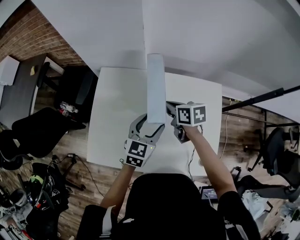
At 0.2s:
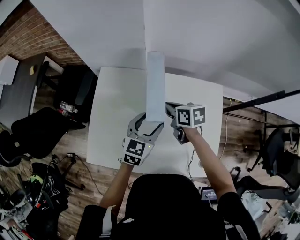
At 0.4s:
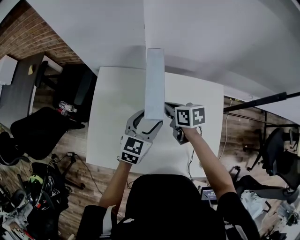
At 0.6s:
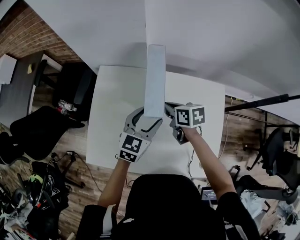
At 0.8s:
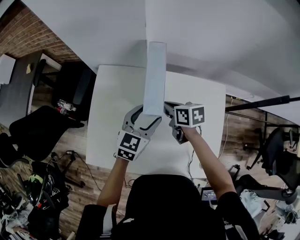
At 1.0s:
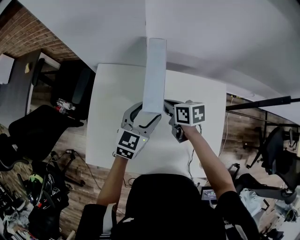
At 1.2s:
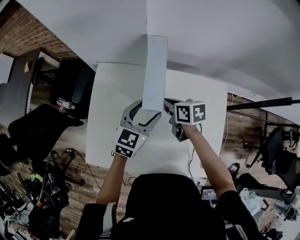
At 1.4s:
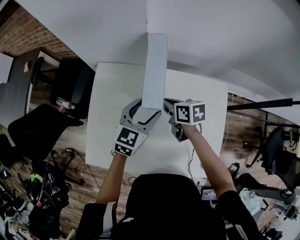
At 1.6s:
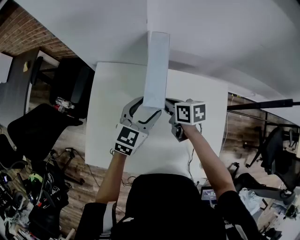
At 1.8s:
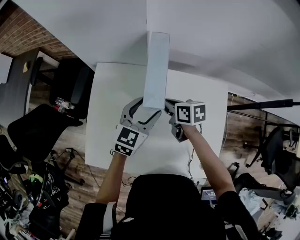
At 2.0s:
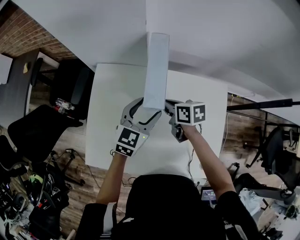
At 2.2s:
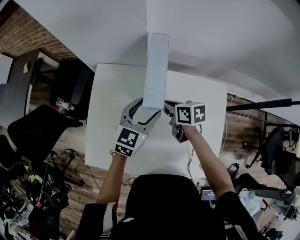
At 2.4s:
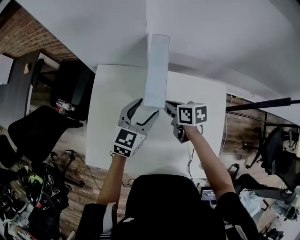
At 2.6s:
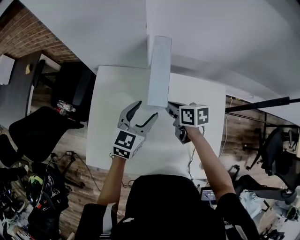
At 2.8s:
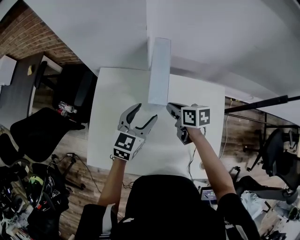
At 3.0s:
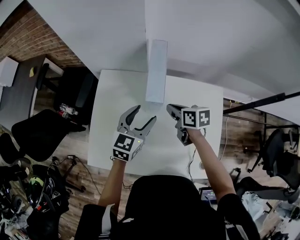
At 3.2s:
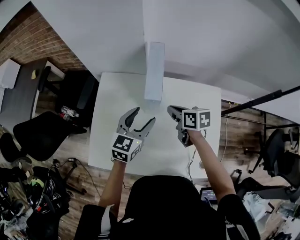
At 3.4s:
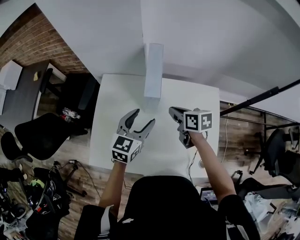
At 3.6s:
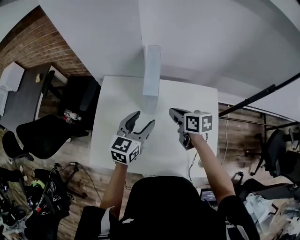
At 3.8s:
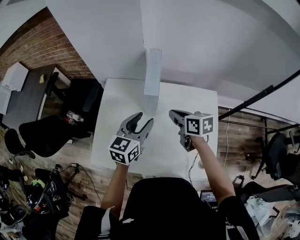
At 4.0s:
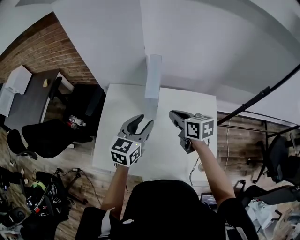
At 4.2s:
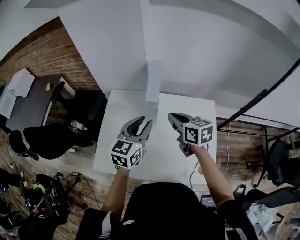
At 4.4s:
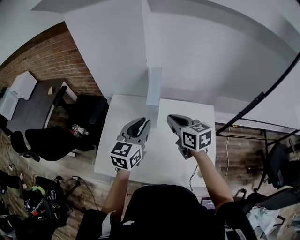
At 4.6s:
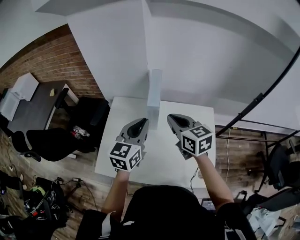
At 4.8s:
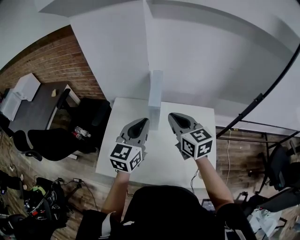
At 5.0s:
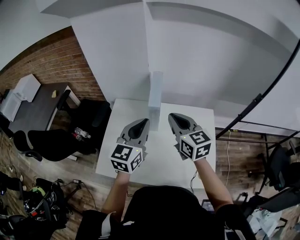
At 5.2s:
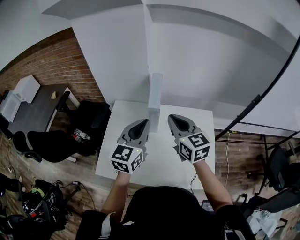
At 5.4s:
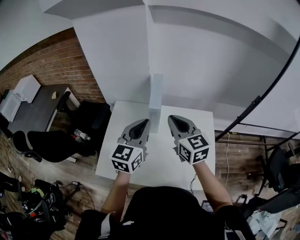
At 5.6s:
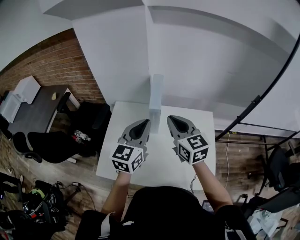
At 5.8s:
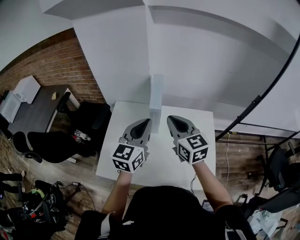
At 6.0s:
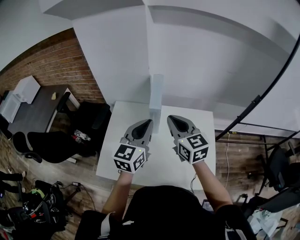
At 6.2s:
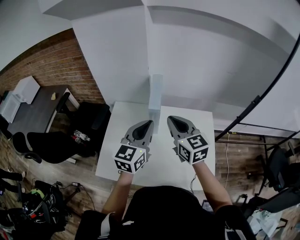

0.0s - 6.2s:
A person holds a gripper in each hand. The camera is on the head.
0.0s - 1.6s: The left gripper moves forward, roughly 10 cm; the right gripper ends up approximately 5 cm from where it was.
1.6s - 3.2s: The right gripper shifts by roughly 5 cm; the left gripper moves about 5 cm.
3.2s - 4.6s: The left gripper shifts approximately 15 cm upward and backward, and closes up. Meanwhile the right gripper goes approximately 20 cm upward, and changes its angle by approximately 40 degrees.
4.6s - 6.2s: The grippers stay close to where they were, moving slightly.

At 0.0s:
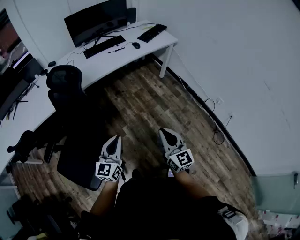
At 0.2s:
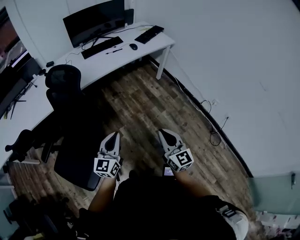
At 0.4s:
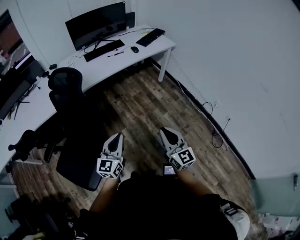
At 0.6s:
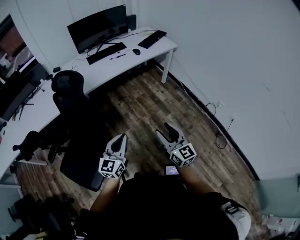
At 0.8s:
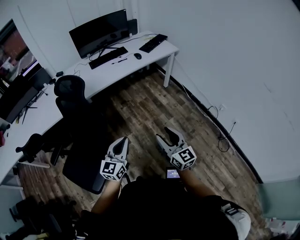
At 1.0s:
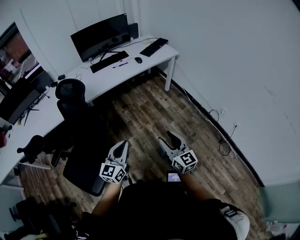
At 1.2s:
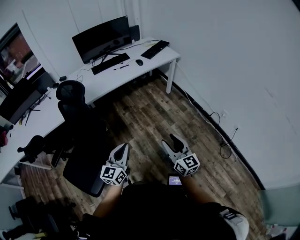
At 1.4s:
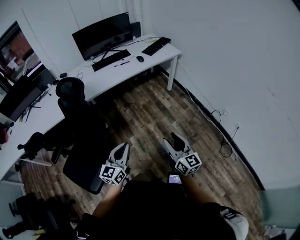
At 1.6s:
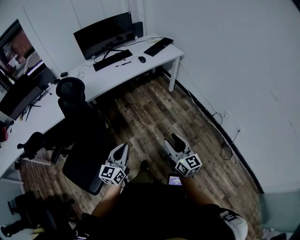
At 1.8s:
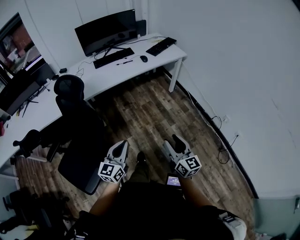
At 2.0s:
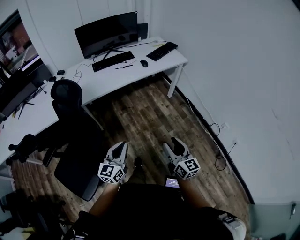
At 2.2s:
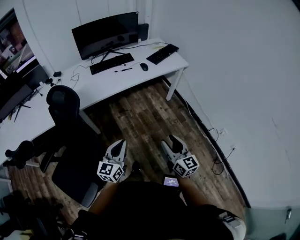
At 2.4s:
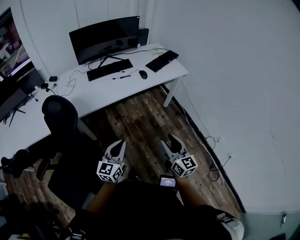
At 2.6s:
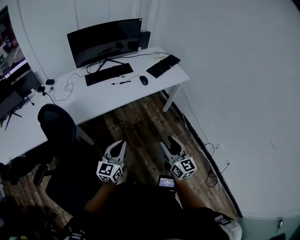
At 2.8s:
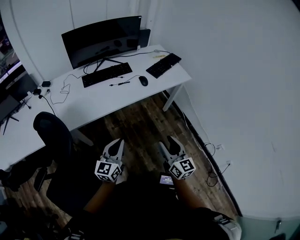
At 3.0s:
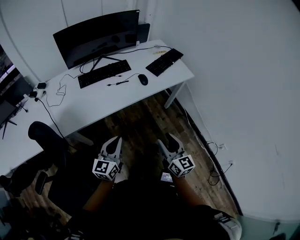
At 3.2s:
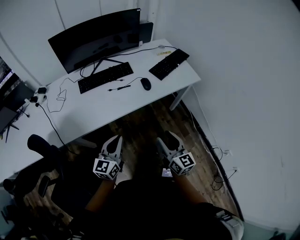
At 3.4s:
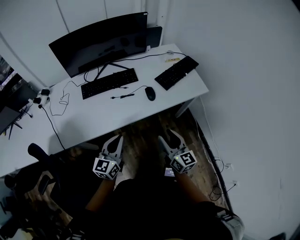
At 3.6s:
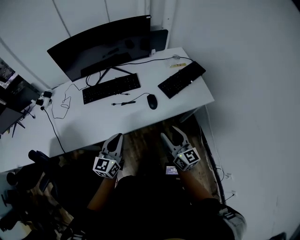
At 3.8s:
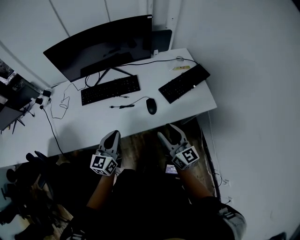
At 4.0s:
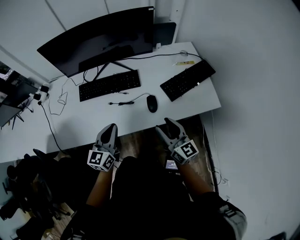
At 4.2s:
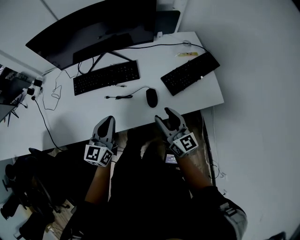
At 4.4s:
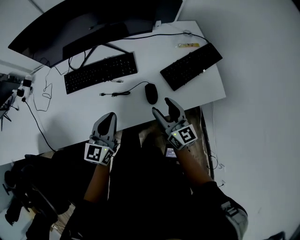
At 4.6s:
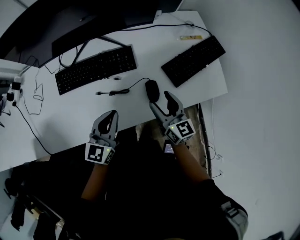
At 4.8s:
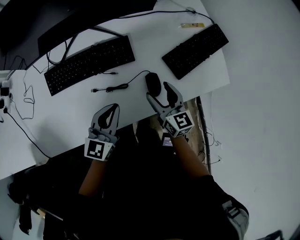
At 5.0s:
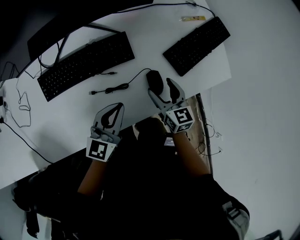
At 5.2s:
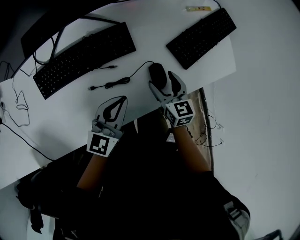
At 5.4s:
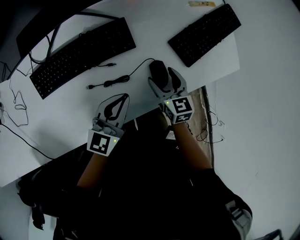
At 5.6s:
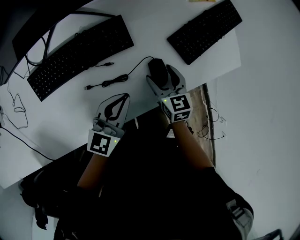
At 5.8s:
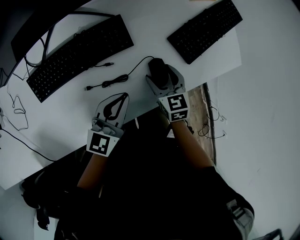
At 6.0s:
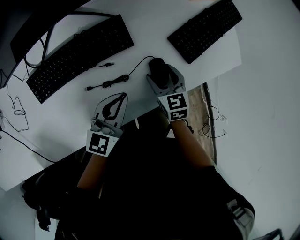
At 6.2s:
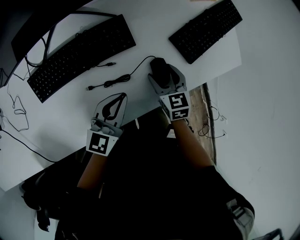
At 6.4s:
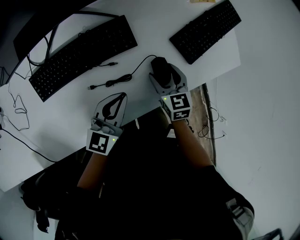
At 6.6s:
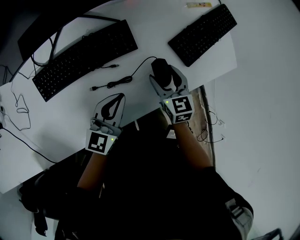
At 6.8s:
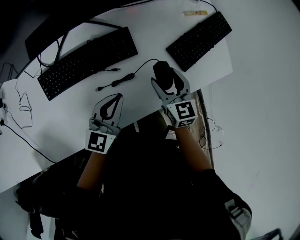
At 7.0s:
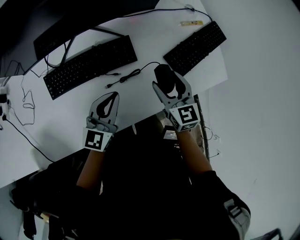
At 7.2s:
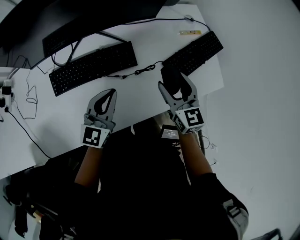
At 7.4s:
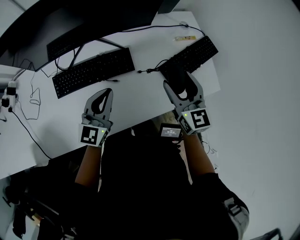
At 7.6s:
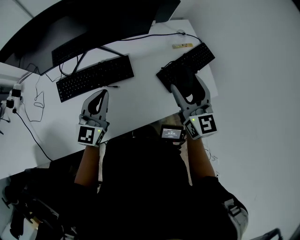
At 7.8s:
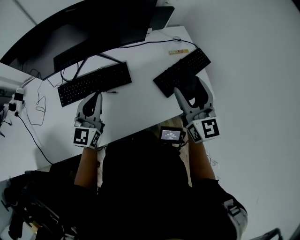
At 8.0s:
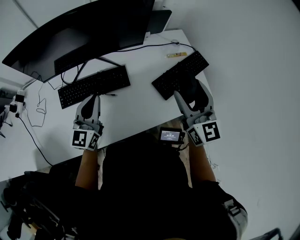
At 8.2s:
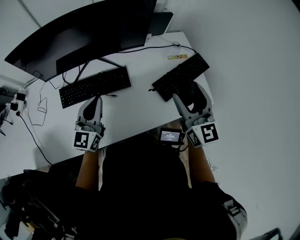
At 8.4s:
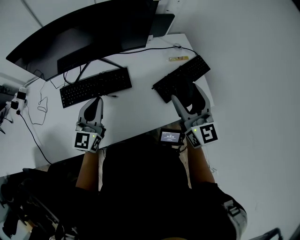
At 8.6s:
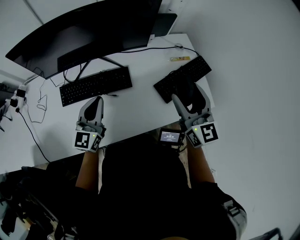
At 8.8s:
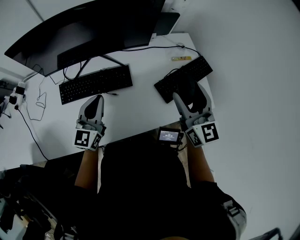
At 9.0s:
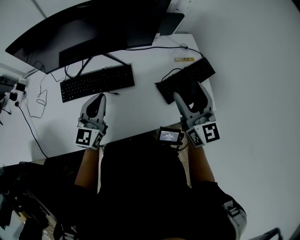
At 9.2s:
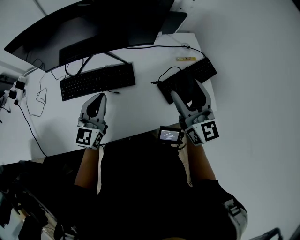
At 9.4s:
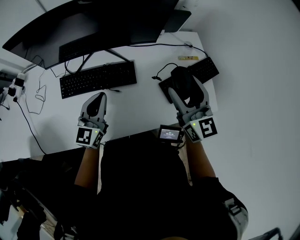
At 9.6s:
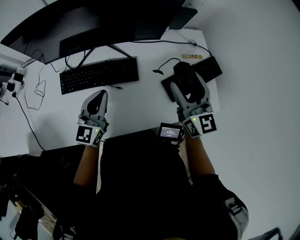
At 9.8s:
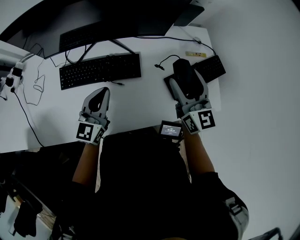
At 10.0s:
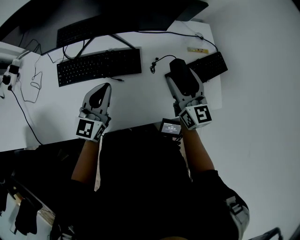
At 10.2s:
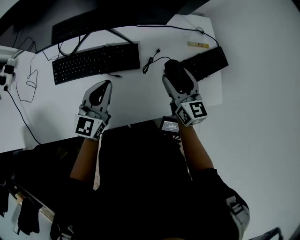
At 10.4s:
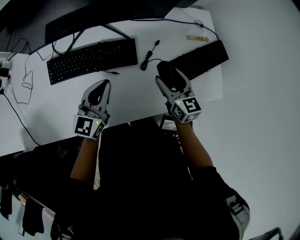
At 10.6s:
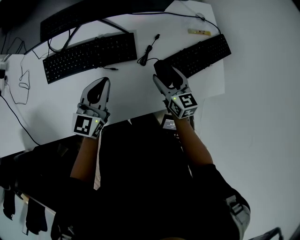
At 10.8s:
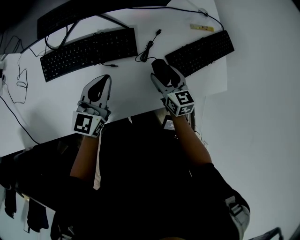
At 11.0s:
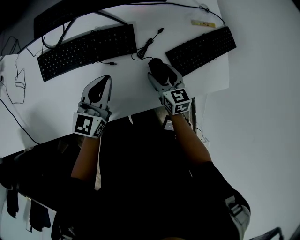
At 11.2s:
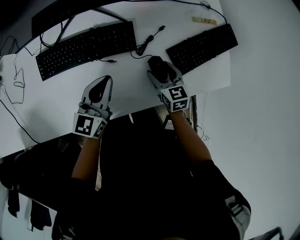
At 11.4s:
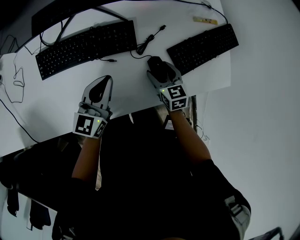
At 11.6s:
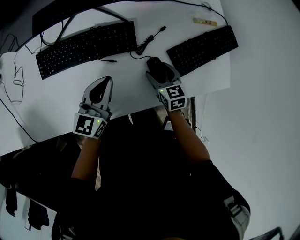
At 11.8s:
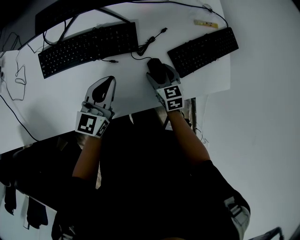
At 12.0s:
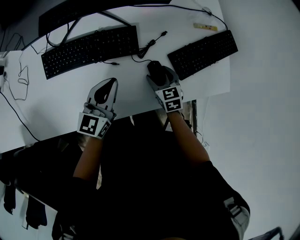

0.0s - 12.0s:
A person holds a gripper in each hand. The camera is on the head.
0.0s - 1.6s: Both grippers travel together to the right, about 10 cm. The right gripper opens.
1.6s - 3.0s: The two grippers travel together, forward, approximately 40 cm.
3.0s - 4.4s: Both grippers travel together forward, roughly 40 cm.
4.4s - 6.0s: The right gripper shifts approximately 20 cm downward, and tips its fingers downward by approximately 40 degrees; the left gripper moves downward and forward, roughly 15 cm, and rotates some 20 degrees.
6.0s - 7.6s: The right gripper heads upward, covering some 30 cm, and tilts its fingers about 40 degrees upward. The left gripper is displaced upward and to the left by approximately 15 cm, and rotates approximately 30 degrees.
7.6s - 9.0s: The grippers stay close to where they were, moving slightly.
9.0s - 10.4s: The left gripper is displaced downward by roughly 10 cm. Meanwhile the right gripper heads downward, covering some 20 cm, and swivels roughly 30 degrees.
10.4s - 12.0s: The left gripper shifts by about 5 cm. Meanwhile the right gripper heads downward, covering some 15 cm, and changes its angle by about 20 degrees.

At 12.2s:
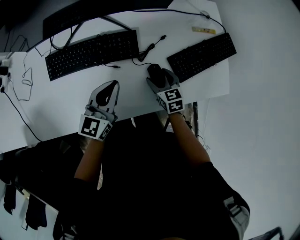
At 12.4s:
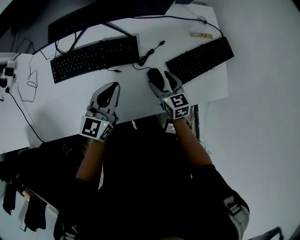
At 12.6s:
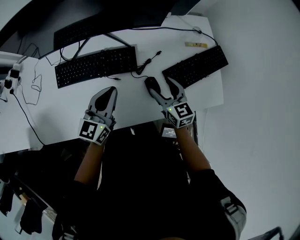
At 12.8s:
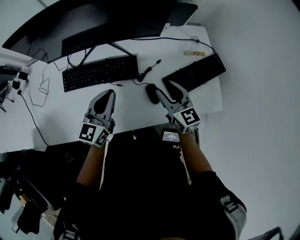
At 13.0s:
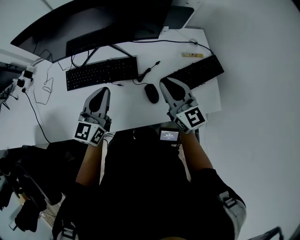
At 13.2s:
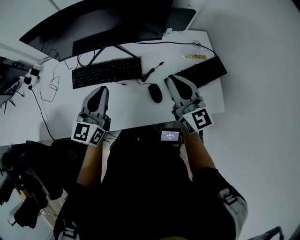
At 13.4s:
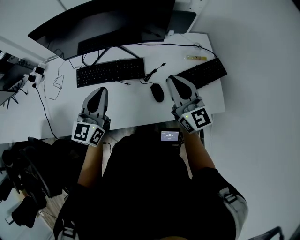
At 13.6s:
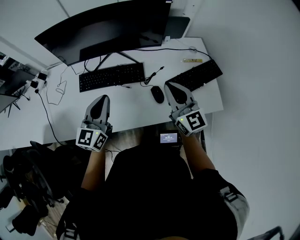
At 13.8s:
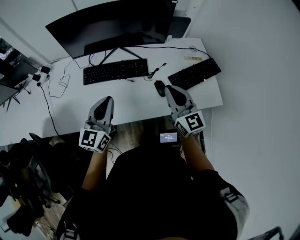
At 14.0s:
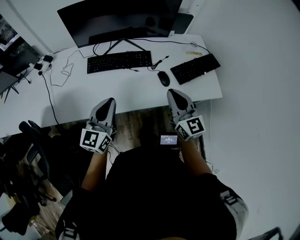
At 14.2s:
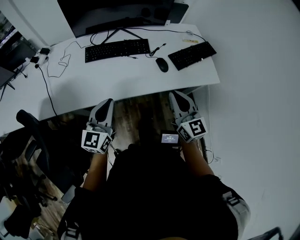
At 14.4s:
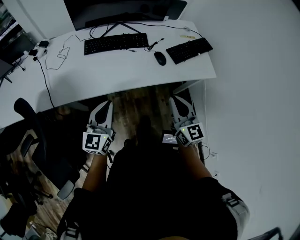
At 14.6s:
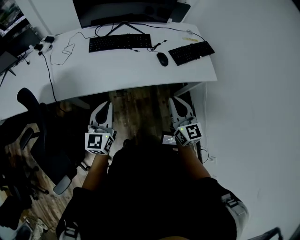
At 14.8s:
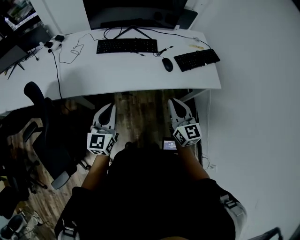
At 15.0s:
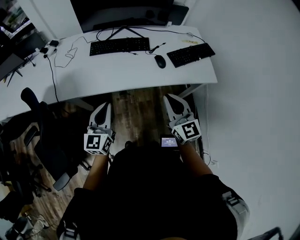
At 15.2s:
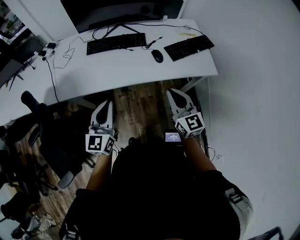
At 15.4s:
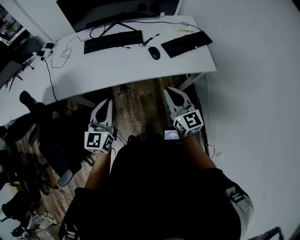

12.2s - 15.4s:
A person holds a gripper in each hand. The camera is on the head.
12.2s - 13.8s: The left gripper moves upward, backward and to the left, some 25 cm. Meanwhile the right gripper travels upward by some 30 cm, tilts its fingers some 40 degrees upward, and closes its fingers.
13.8s - 15.4s: The two grippers go roughly 25 cm backward.

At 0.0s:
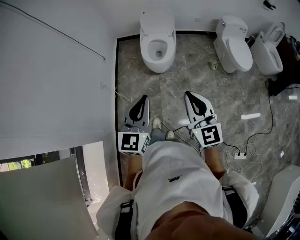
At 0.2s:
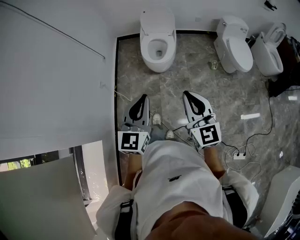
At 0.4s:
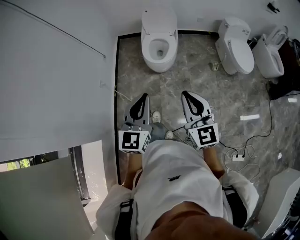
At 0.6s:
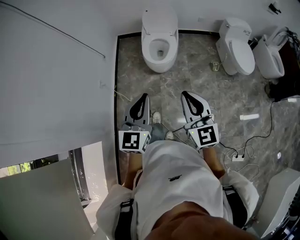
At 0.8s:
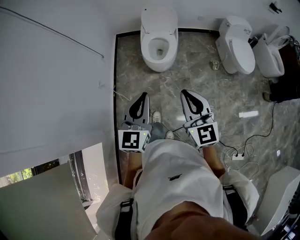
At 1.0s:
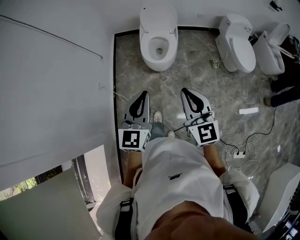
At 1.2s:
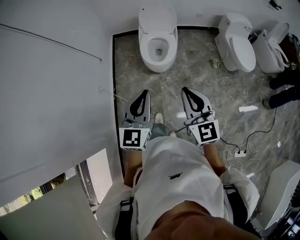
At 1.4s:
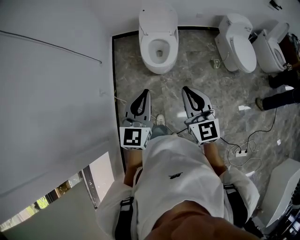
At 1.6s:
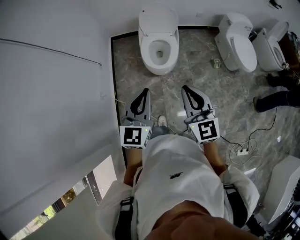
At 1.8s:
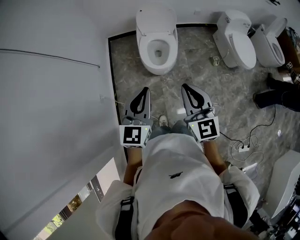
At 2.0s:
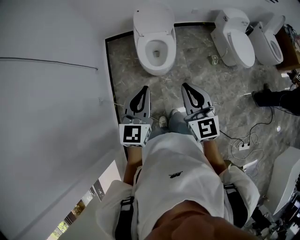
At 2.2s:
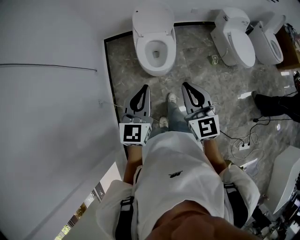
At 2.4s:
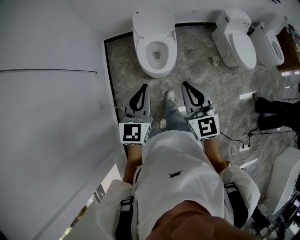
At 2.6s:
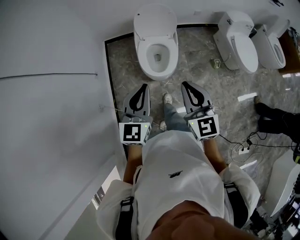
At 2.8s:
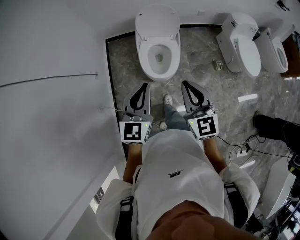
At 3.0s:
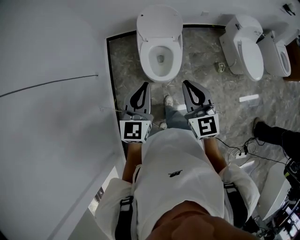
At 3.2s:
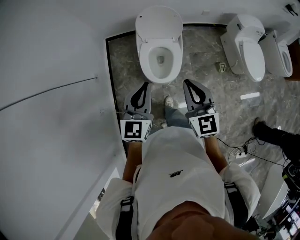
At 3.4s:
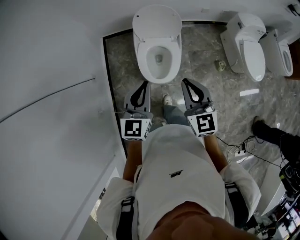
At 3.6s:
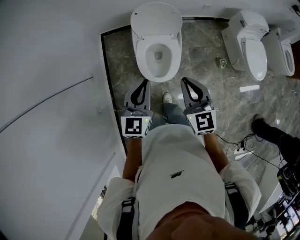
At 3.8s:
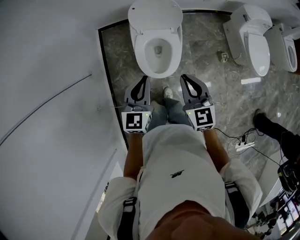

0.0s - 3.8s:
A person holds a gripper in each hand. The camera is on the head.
0.0s - 1.2s: Both grippers move forward, approximately 15 cm.
1.2s - 2.6s: Both grippers move forward, approximately 20 cm.
2.6s - 3.8s: The two grippers go about 25 cm forward and downward.
